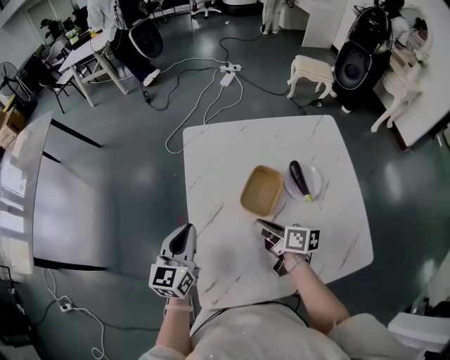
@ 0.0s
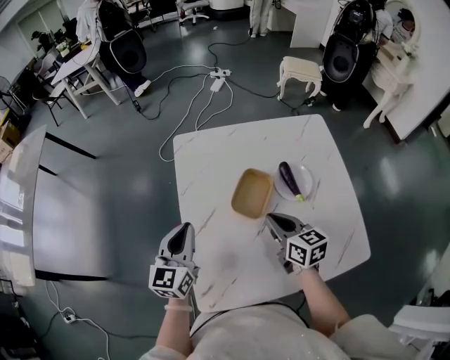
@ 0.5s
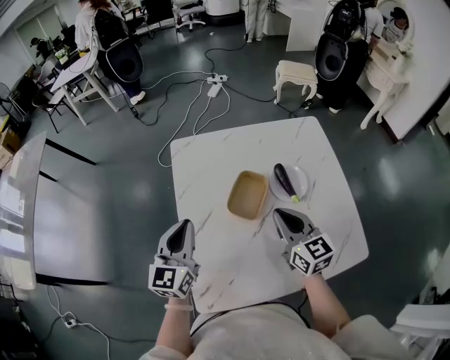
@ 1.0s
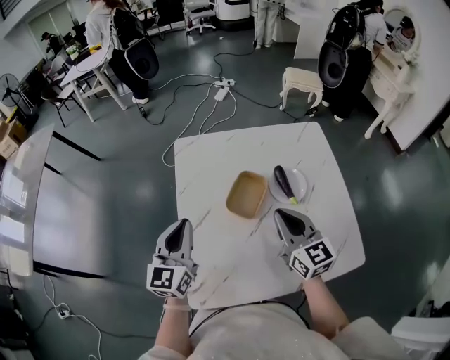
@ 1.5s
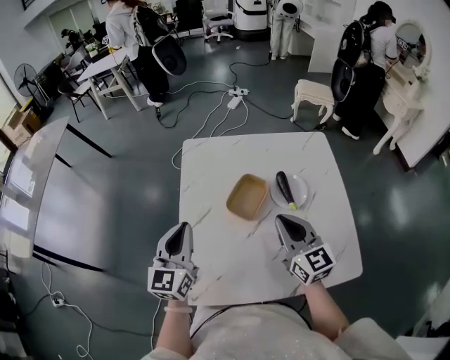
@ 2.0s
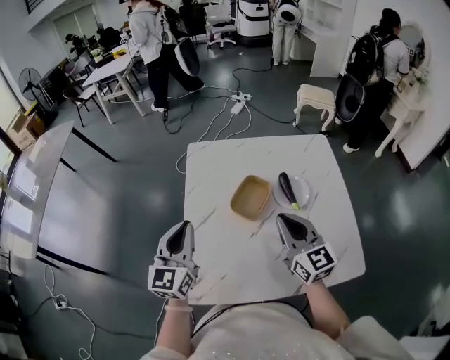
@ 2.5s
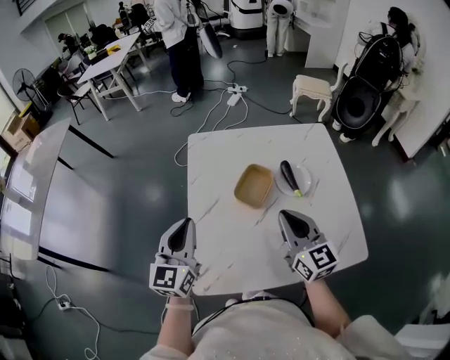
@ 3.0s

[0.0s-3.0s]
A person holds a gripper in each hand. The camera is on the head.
0.0s to 1.5s: The left gripper goes some 5 cm upward; the right gripper is displaced upward and to the right by approximately 15 cm, and twists roughly 50 degrees counterclockwise, seen from behind.
1.5s to 3.0s: The right gripper ends up roughly 5 cm from where it was, while the left gripper heads backward, covering about 5 cm.

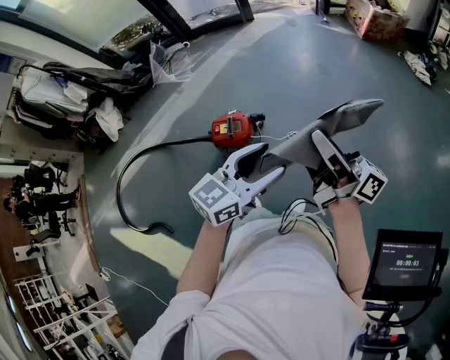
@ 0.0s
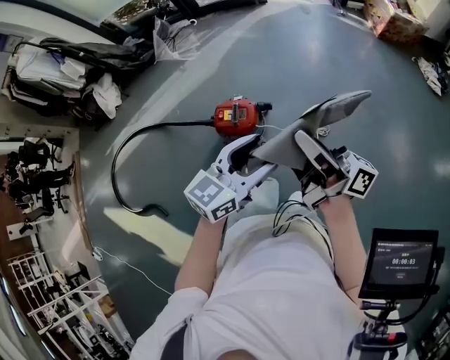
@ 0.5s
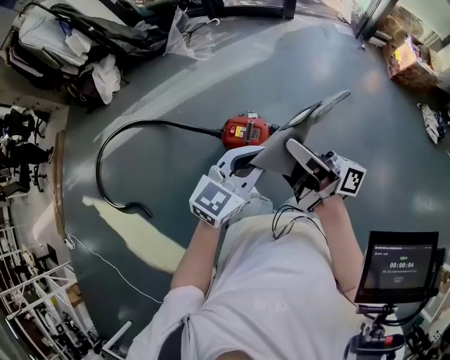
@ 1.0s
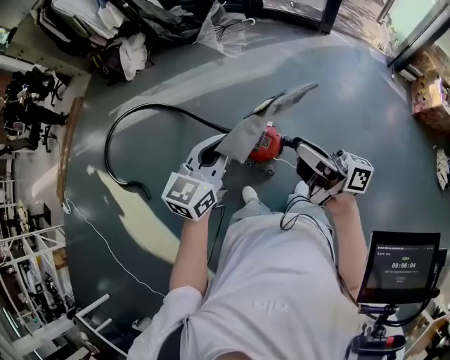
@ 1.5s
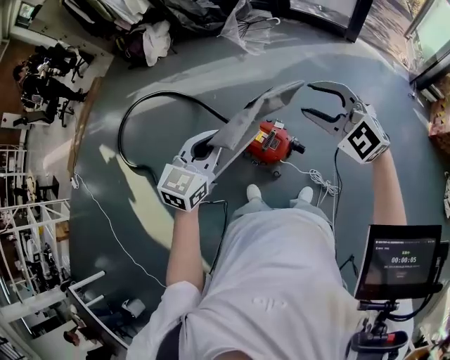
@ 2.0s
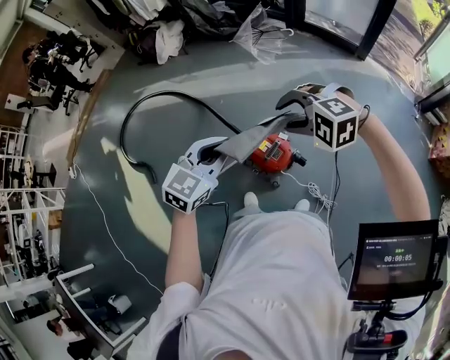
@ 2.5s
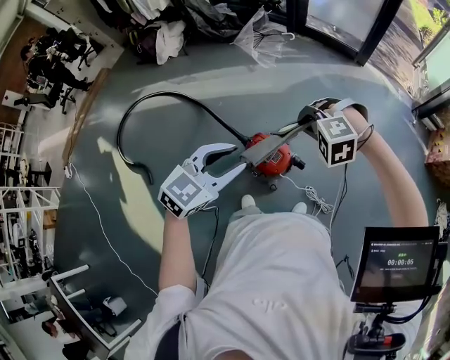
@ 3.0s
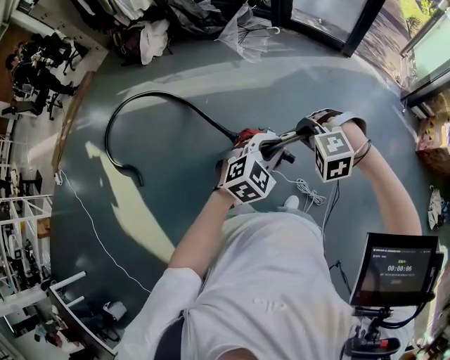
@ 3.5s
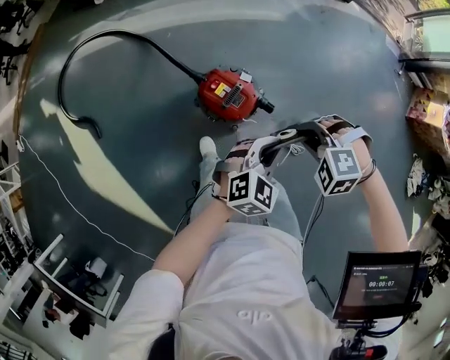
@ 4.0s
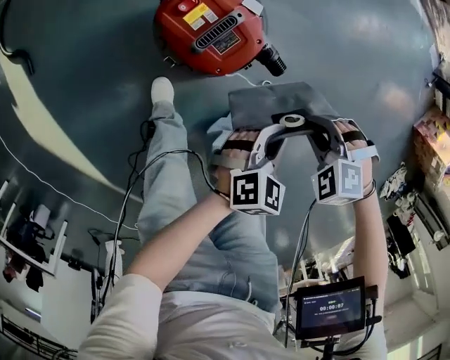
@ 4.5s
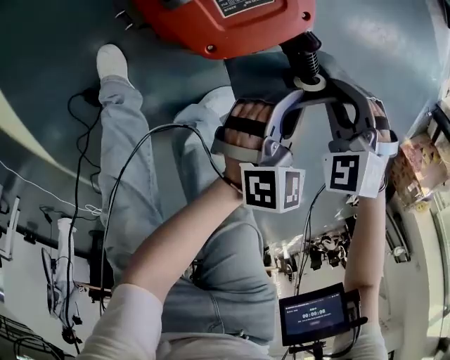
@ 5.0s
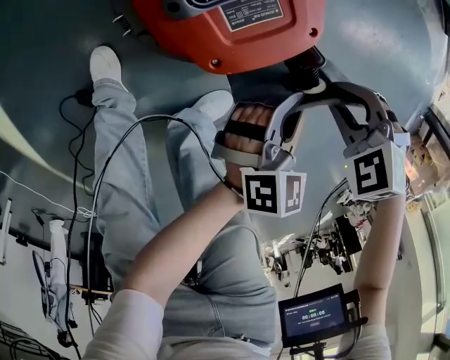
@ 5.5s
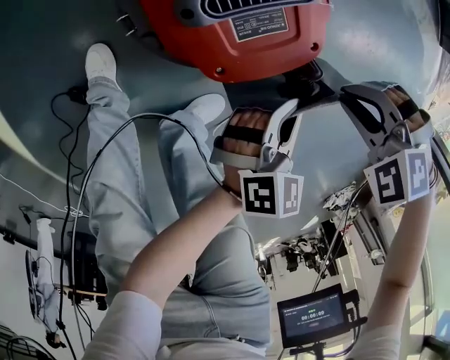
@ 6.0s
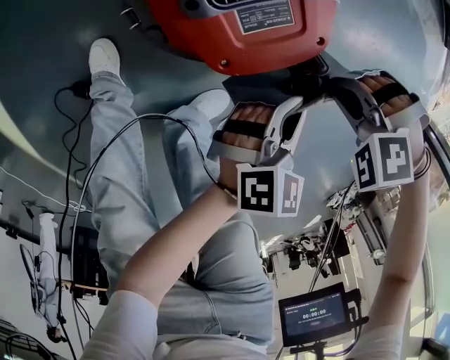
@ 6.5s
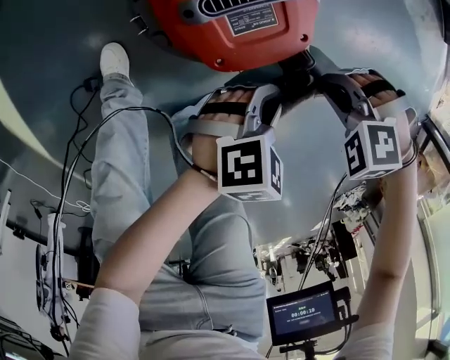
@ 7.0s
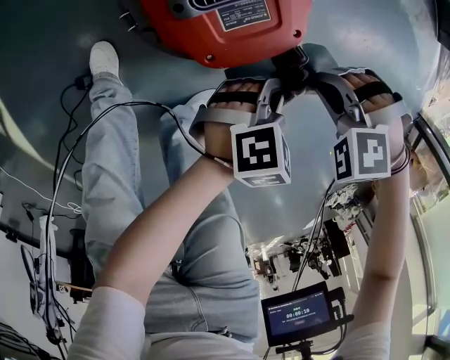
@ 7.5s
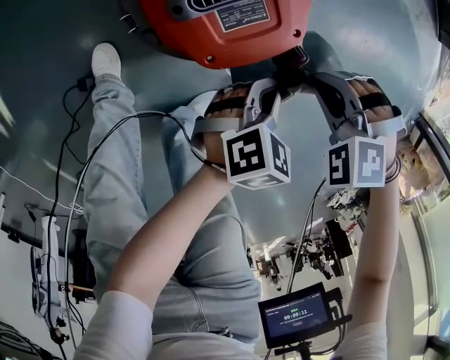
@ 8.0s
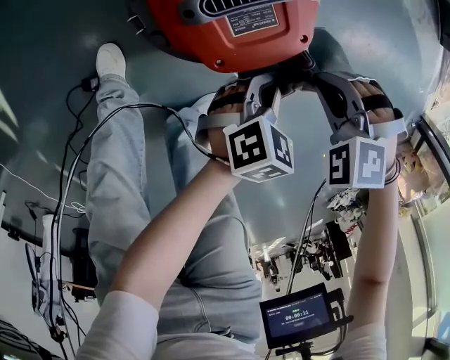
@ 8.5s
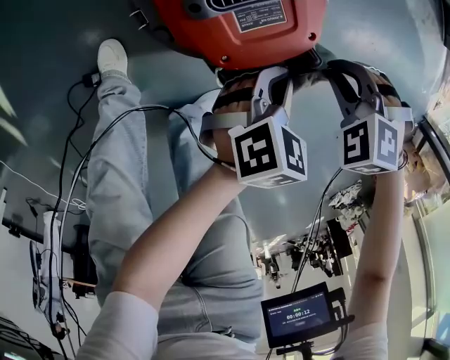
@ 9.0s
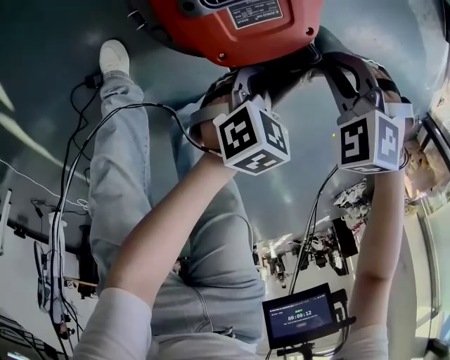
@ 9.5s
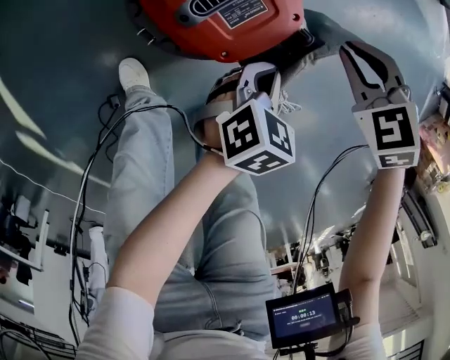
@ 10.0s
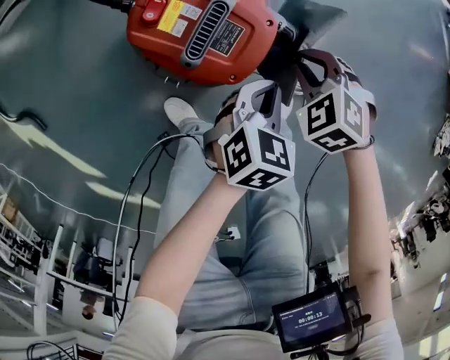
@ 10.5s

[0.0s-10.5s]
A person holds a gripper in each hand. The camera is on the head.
0.0s to 2.0s: The left gripper shifts by about 35 cm, rotates roughly 50 degrees, and closes; the right gripper moves about 40 cm, tilts its fingers about 50 degrees downward, and opens its fingers.
2.0s to 4.0s: The left gripper is displaced downward, to the right and backward by about 30 cm, changes its angle by some 20 degrees, and opens, then closes once more; the right gripper is displaced downward and backward by approximately 25 cm, points its fingers some 50 degrees further downward, and closes.
4.0s to 6.5s: The two grippers go about 50 cm downward. The left gripper turns by about 40 degrees; the right gripper turns by approximately 50 degrees.
6.5s to 8.5s: The right gripper turns by about 20 degrees. The left gripper changes place by roughly 5 cm.
8.5s to 10.5s: The right gripper rotates around the line of its fingers by some 70 degrees, clockwise from behind. The left gripper heads upward, covering approximately 5 cm, and rotates roughly 30 degrees.

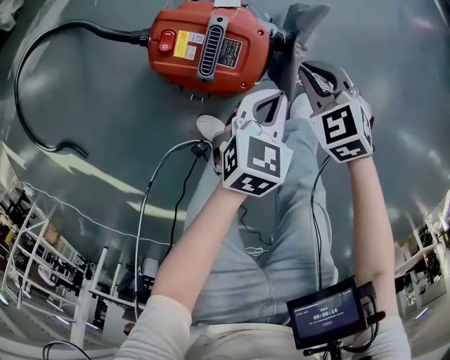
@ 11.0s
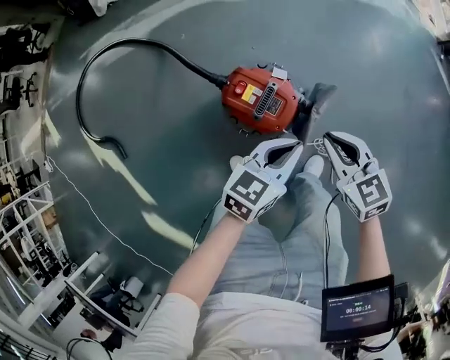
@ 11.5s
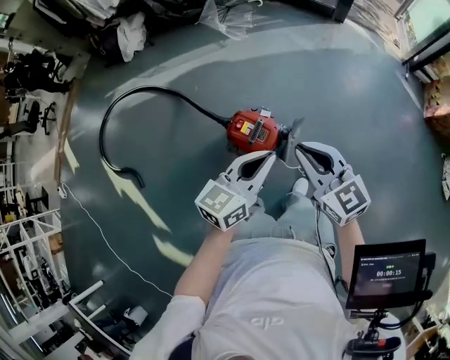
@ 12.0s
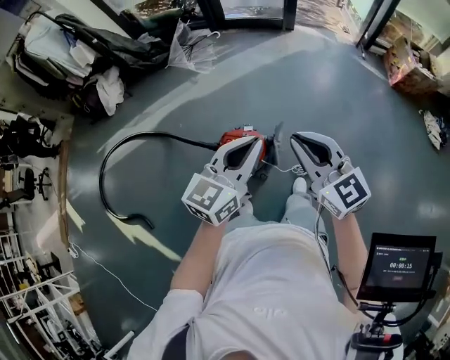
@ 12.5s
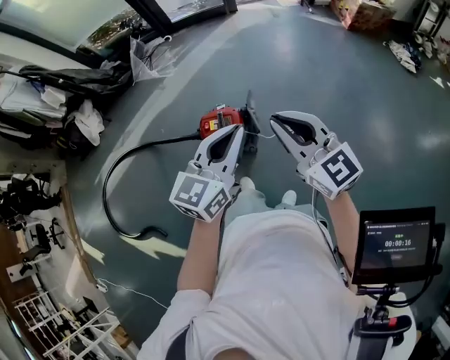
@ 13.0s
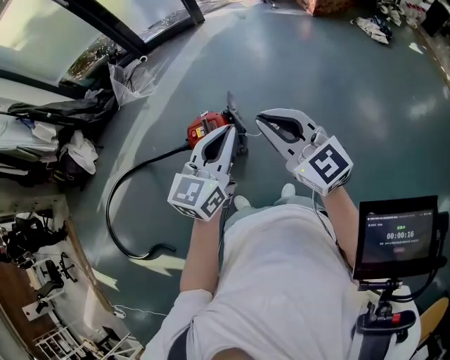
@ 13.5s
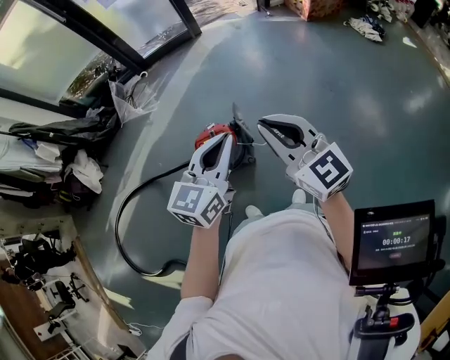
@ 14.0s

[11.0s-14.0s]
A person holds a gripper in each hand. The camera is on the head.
11.0s to 12.5s: The grippers both shift upward by some 70 cm. The left gripper tips its fingers upward by approximately 40 degrees, while the right gripper points its fingers some 50 degrees further upward.
12.5s to 14.0s: Both grippers travel together backward, approximately 15 cm. The right gripper turns by approximately 30 degrees.

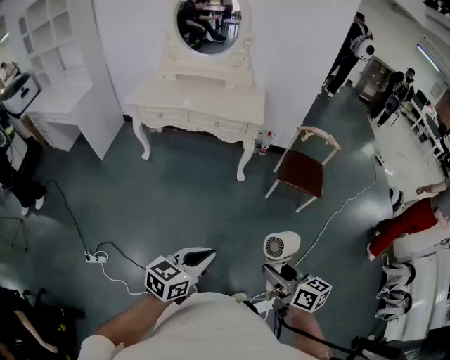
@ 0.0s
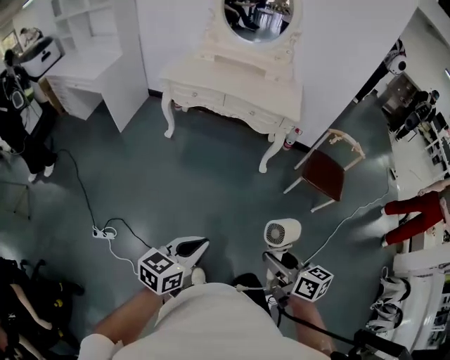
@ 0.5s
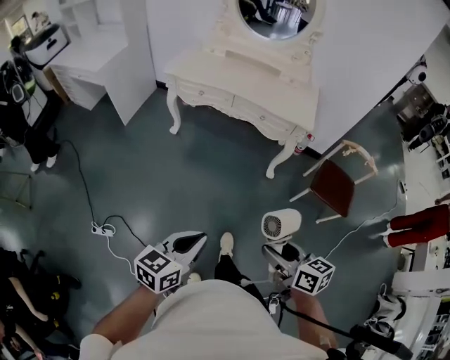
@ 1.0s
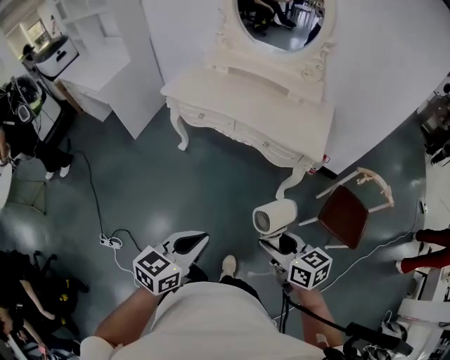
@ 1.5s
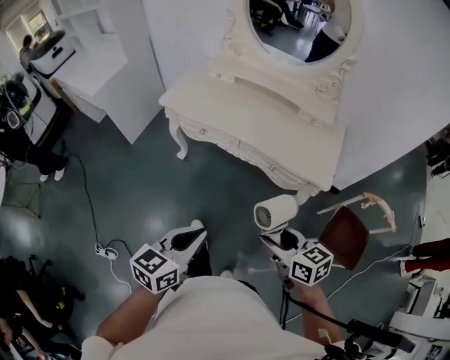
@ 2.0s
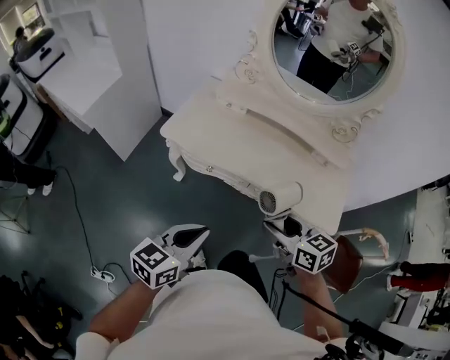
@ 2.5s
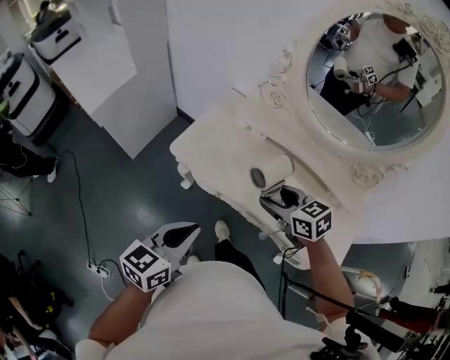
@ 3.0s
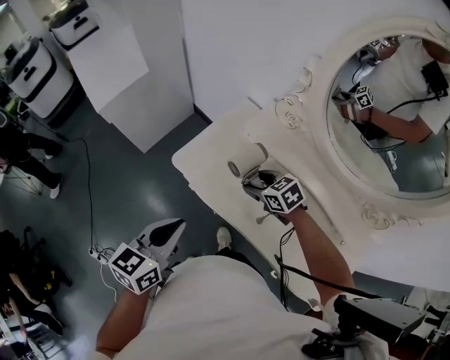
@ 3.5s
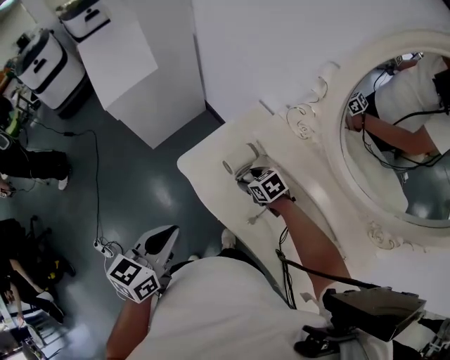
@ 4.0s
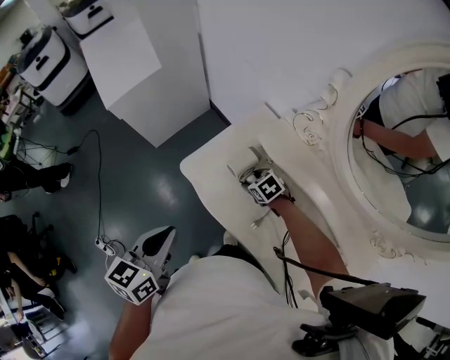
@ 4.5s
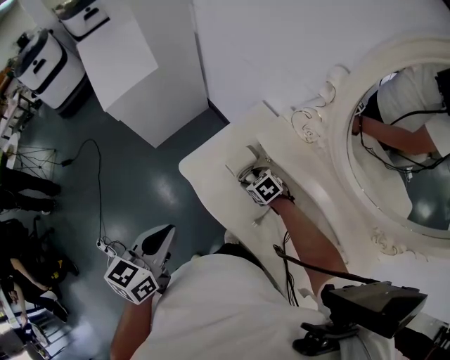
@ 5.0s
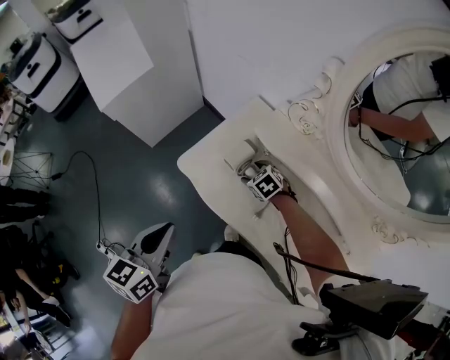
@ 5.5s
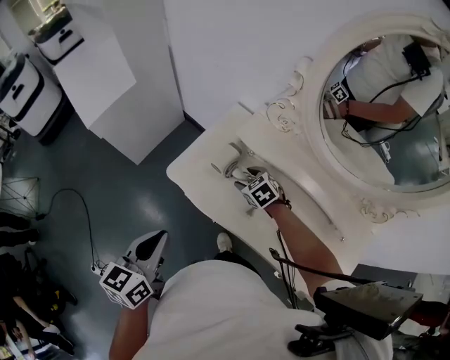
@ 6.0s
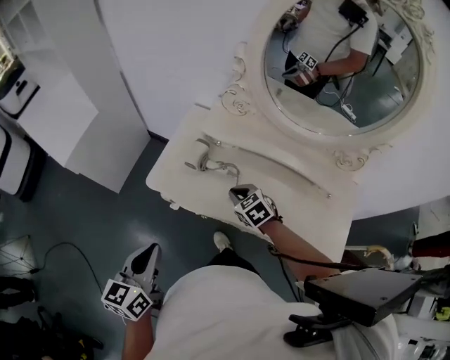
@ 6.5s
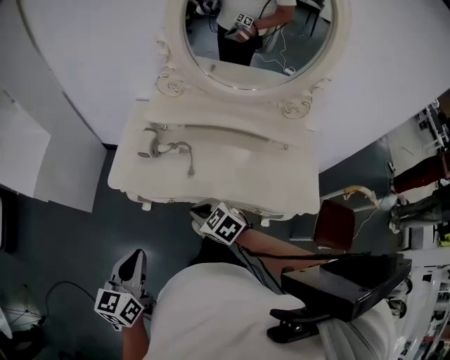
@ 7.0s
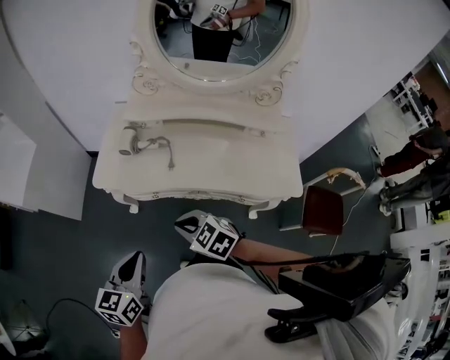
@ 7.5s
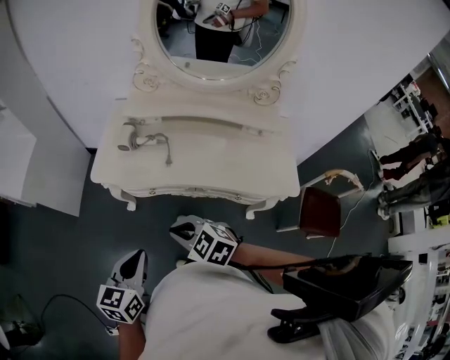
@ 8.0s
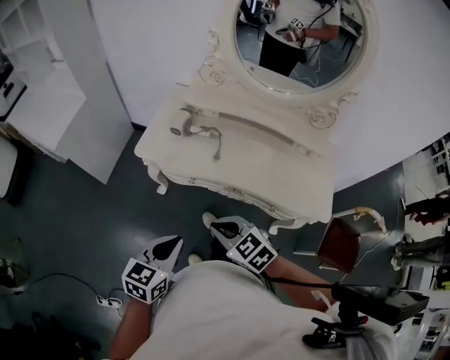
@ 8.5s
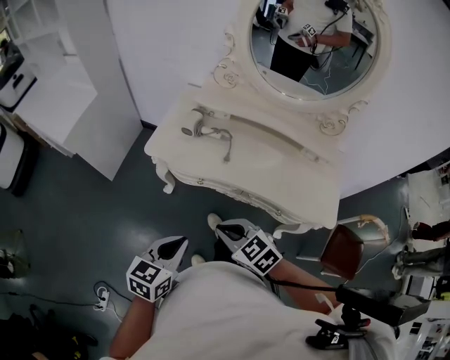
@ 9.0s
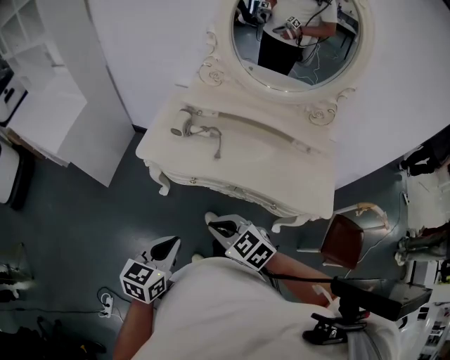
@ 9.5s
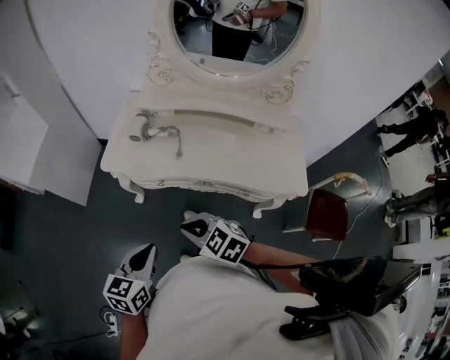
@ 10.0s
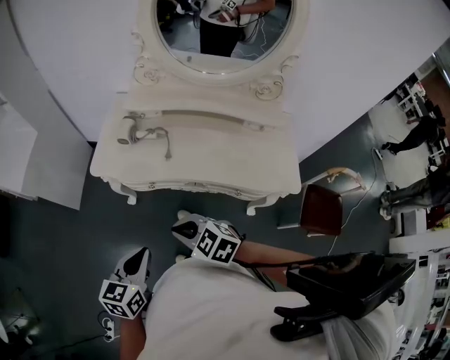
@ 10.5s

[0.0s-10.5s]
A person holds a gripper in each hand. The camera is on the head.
0.0s to 2.0s: The two grippers travel together, forward, about 50 cm. The right gripper swivels approximately 30 degrees. Meanwhile the left gripper rotates about 20 degrees.
2.0s to 4.0s: Both grippers are carried about 60 cm. The left gripper swivels roughly 30 degrees, while the right gripper turns by roughly 50 degrees.
4.0s to 6.5s: The right gripper moves approximately 15 cm, rotates roughly 30 degrees, and closes its fingers. The left gripper shifts by roughly 10 cm.
6.5s to 8.5s: The right gripper is displaced backward by roughly 30 cm; the left gripper is displaced backward and to the right by roughly 20 cm, and swivels approximately 20 degrees.
8.5s to 10.5s: The grippers stay close to where they were, moving slightly.
